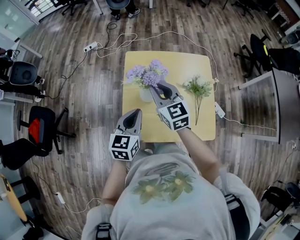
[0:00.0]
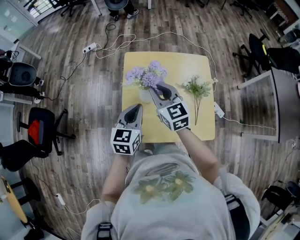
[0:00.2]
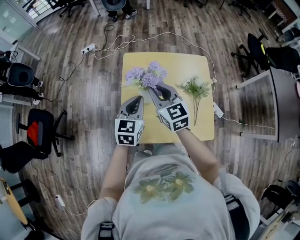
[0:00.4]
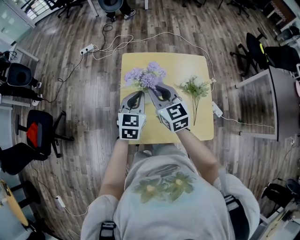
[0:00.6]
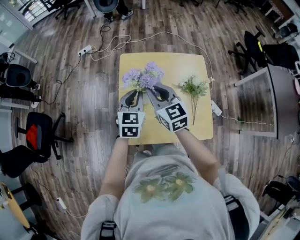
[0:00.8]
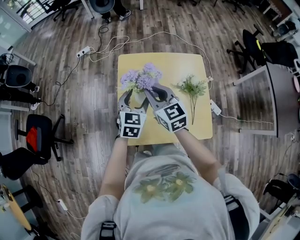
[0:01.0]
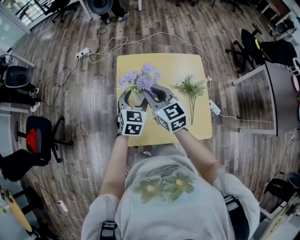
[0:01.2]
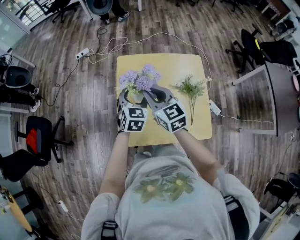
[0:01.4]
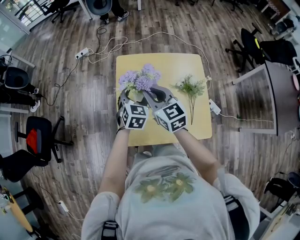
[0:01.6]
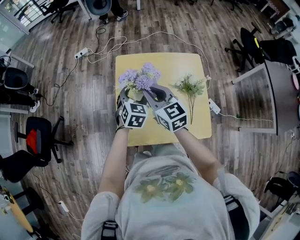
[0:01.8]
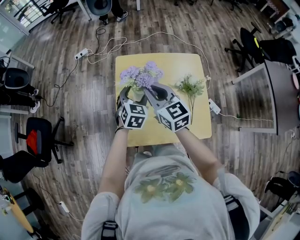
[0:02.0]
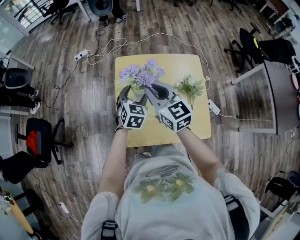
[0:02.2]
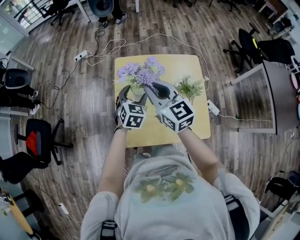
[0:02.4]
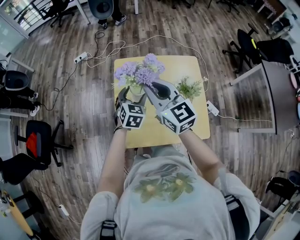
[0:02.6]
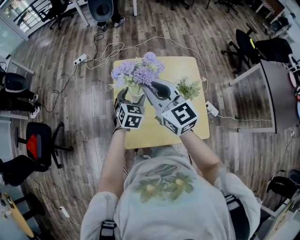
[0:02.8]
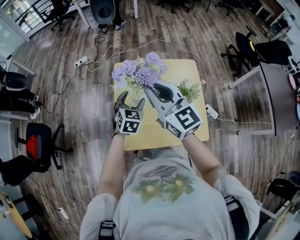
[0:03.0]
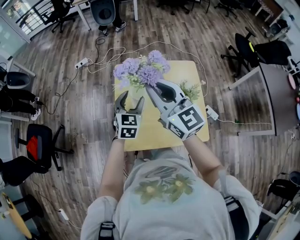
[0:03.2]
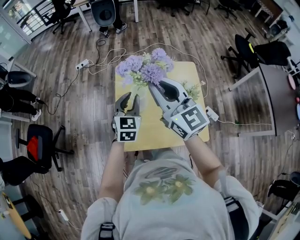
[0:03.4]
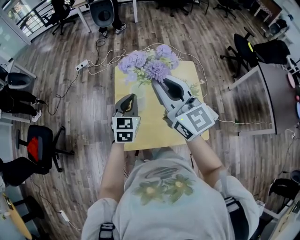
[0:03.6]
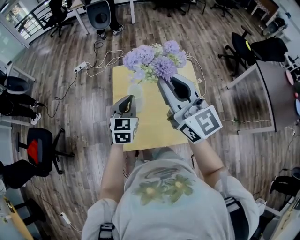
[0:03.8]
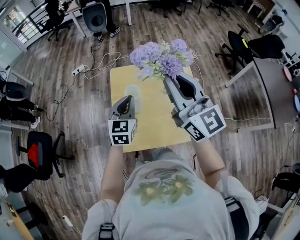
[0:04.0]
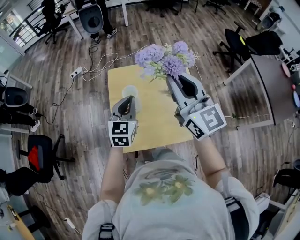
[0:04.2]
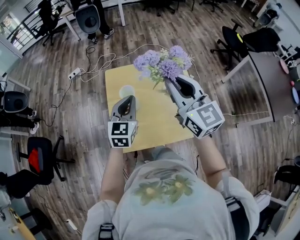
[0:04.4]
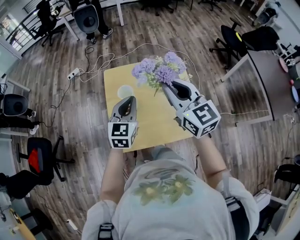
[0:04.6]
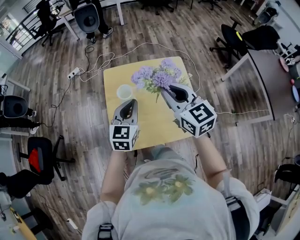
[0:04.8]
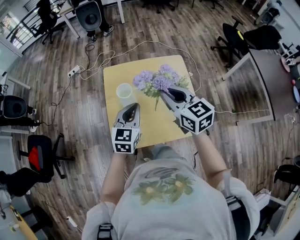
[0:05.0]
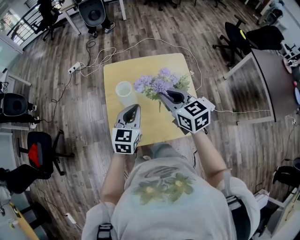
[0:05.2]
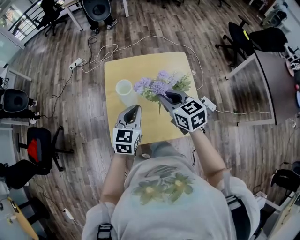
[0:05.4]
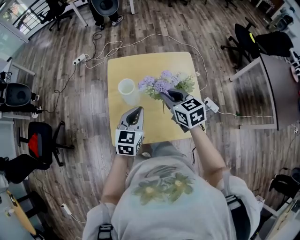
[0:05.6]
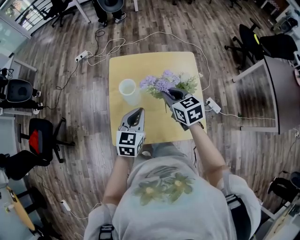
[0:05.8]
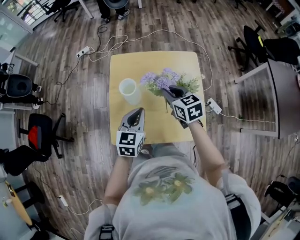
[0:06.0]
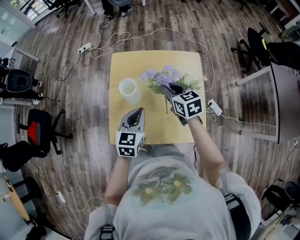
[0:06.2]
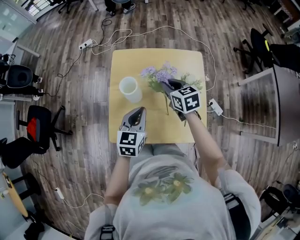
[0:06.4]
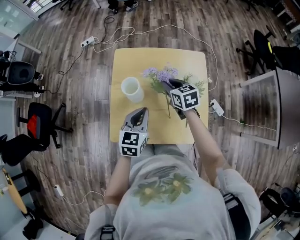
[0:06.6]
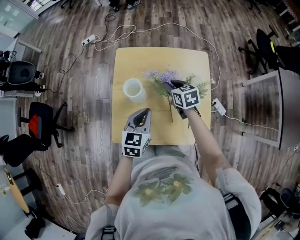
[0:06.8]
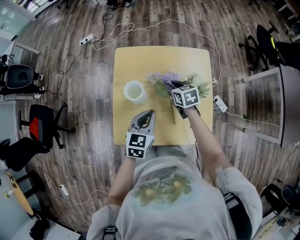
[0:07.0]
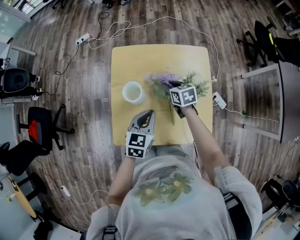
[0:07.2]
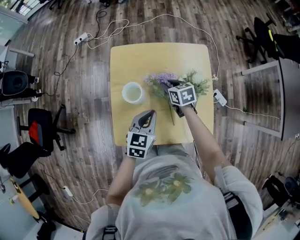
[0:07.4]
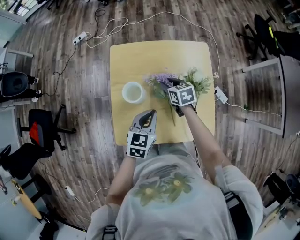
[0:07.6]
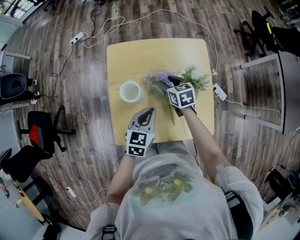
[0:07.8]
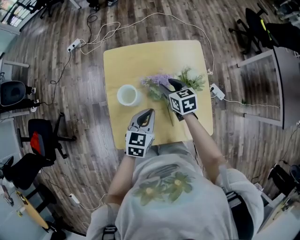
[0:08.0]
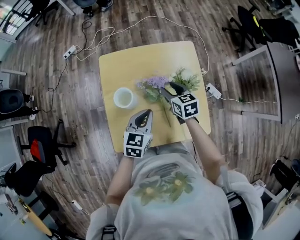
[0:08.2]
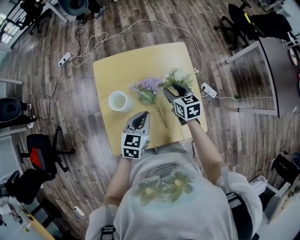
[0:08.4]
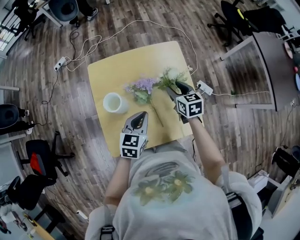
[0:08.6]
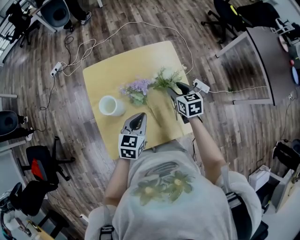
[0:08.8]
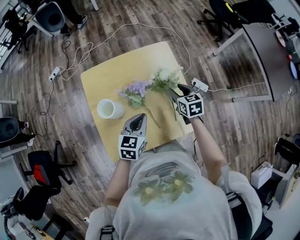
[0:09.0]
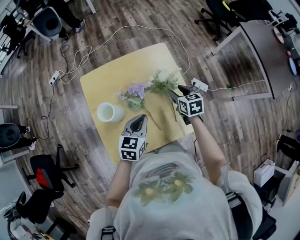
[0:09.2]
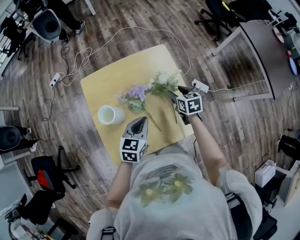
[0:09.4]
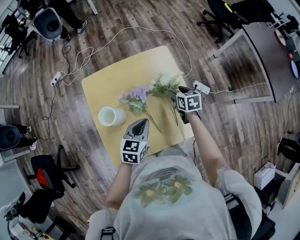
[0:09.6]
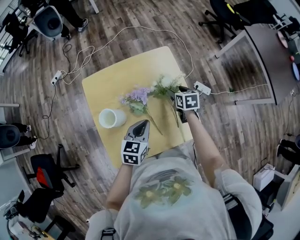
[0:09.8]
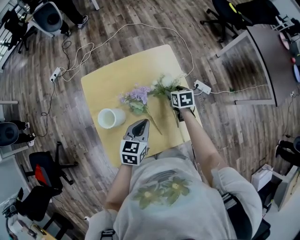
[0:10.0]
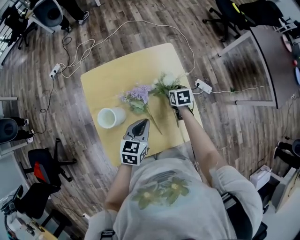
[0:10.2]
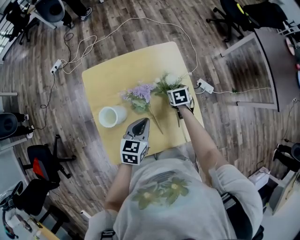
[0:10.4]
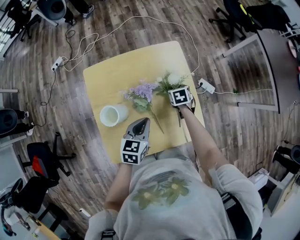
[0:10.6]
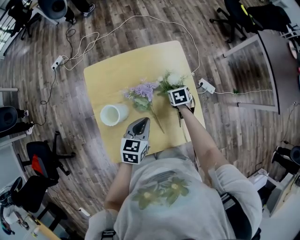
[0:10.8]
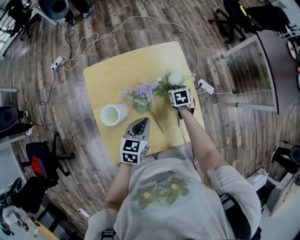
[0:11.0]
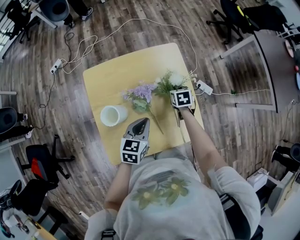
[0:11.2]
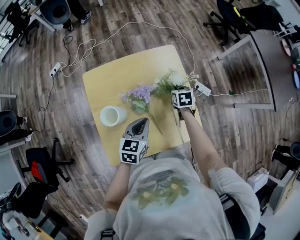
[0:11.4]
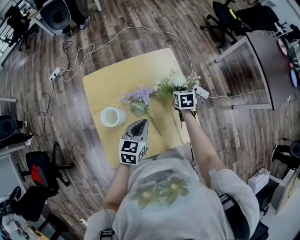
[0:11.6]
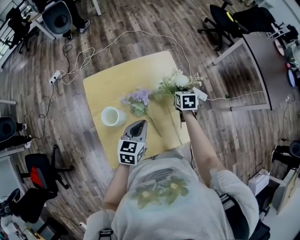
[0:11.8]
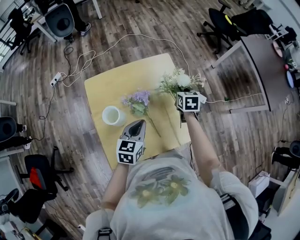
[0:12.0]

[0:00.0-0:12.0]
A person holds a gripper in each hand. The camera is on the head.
0:00.0 to 0:01.6: The left gripper is displaced forward, downward and to the right by about 15 cm, rotates about 30 degrees, and opens its fingers.
0:01.6 to 0:03.0: The right gripper moves upward, roughly 15 cm.
0:03.0 to 0:04.4: The right gripper moves to the right and backward, some 15 cm; the left gripper moves upward and backward, approximately 10 cm, changes its angle by about 20 degrees, and closes.
0:04.4 to 0:06.0: The left gripper moves downward, about 10 cm, while the right gripper goes some 25 cm downward, and tips its fingers downward by roughly 30 degrees.
0:06.0 to 0:07.6: The left gripper heads downward and forward, covering roughly 10 cm, while the right gripper shifts some 20 cm downward and forward.
0:07.6 to 0:09.0: The right gripper heads to the right, covering roughly 20 cm, and swivels roughly 20 degrees. Meanwhile the left gripper shifts roughly 5 cm to the right.
0:09.0 to 0:10.4: The left gripper ends up roughly 5 cm from where it was, while the right gripper moves downward and forward, about 15 cm, and changes its angle by about 20 degrees.
0:10.4 to 0:12.0: The right gripper heads upward, covering about 15 cm, swivels roughly 20 degrees, and closes; the left gripper is displaced upward by roughly 5 cm.

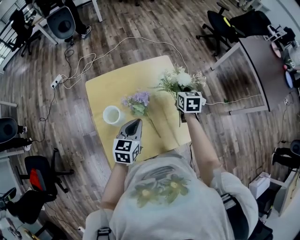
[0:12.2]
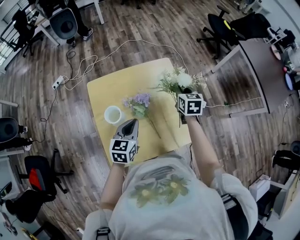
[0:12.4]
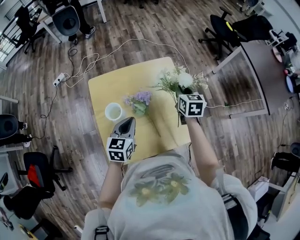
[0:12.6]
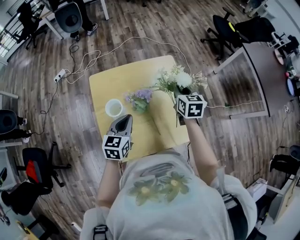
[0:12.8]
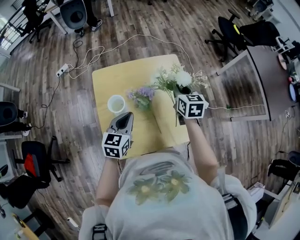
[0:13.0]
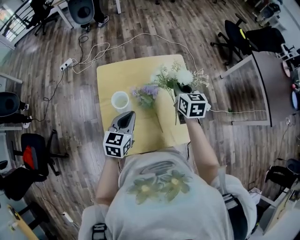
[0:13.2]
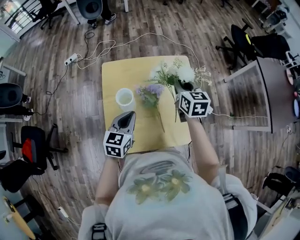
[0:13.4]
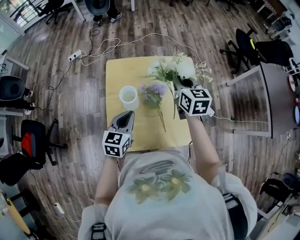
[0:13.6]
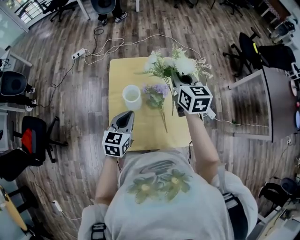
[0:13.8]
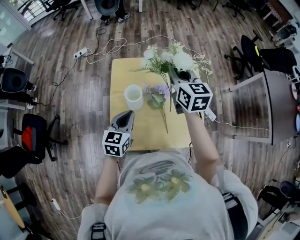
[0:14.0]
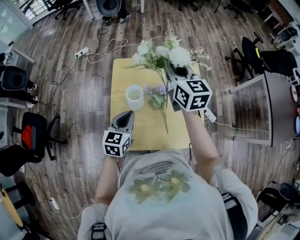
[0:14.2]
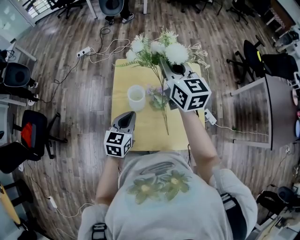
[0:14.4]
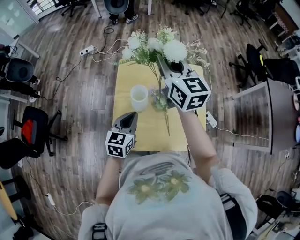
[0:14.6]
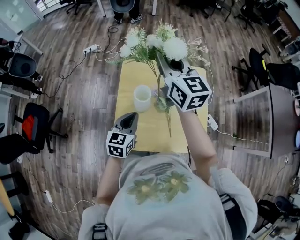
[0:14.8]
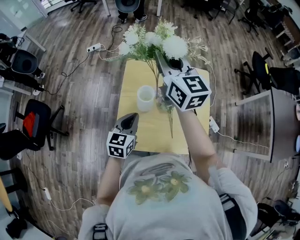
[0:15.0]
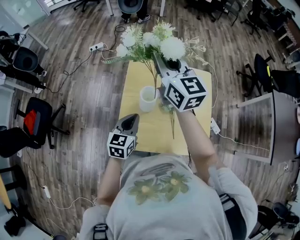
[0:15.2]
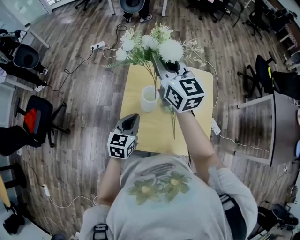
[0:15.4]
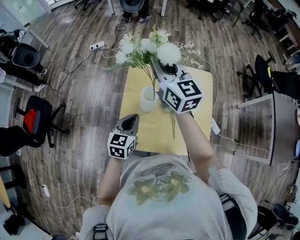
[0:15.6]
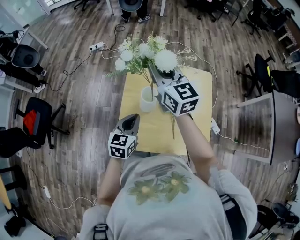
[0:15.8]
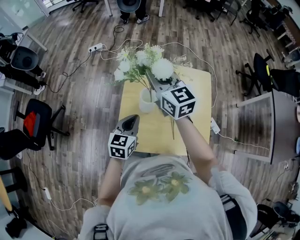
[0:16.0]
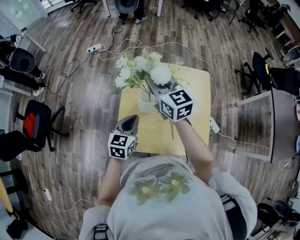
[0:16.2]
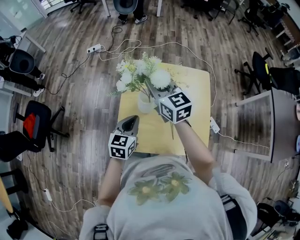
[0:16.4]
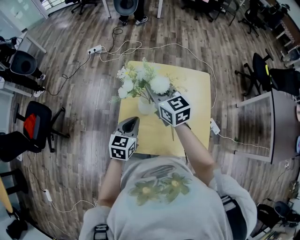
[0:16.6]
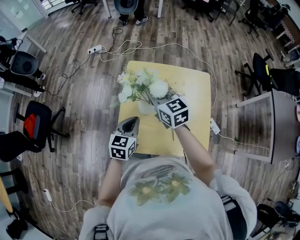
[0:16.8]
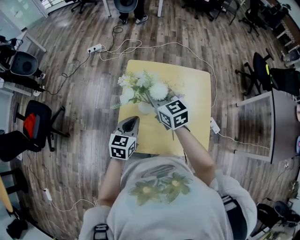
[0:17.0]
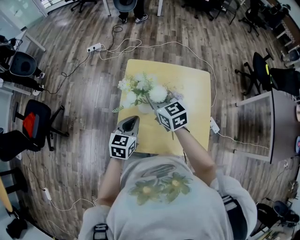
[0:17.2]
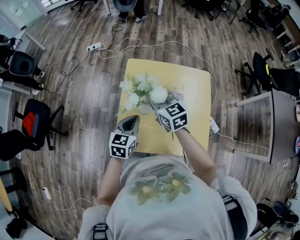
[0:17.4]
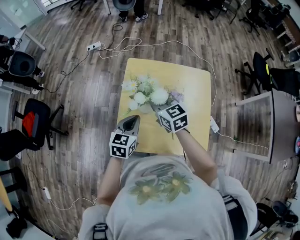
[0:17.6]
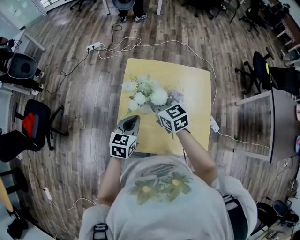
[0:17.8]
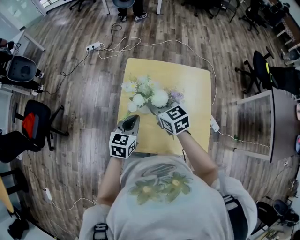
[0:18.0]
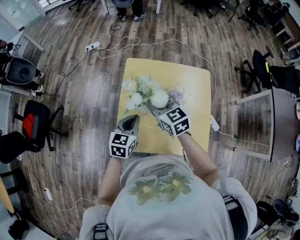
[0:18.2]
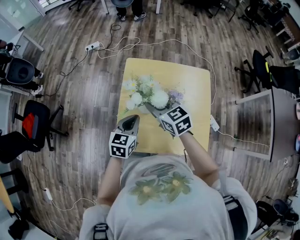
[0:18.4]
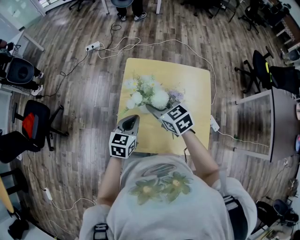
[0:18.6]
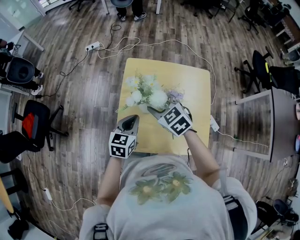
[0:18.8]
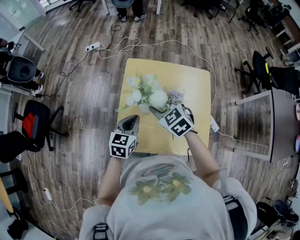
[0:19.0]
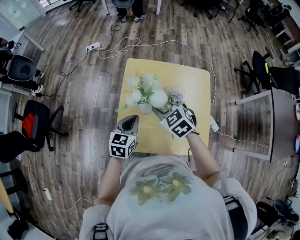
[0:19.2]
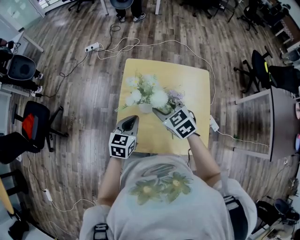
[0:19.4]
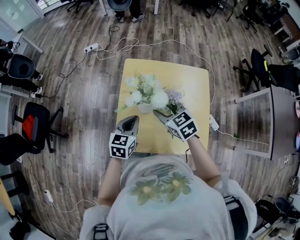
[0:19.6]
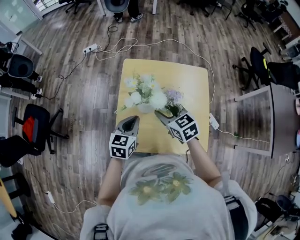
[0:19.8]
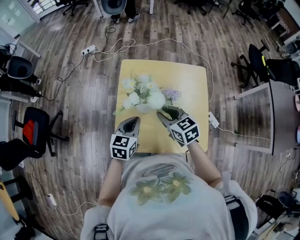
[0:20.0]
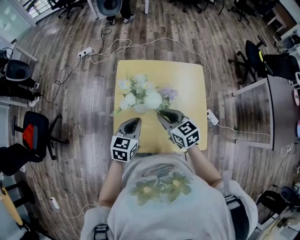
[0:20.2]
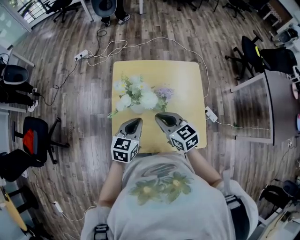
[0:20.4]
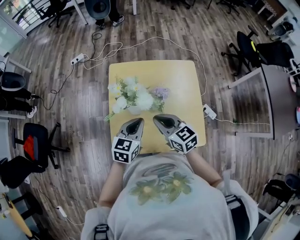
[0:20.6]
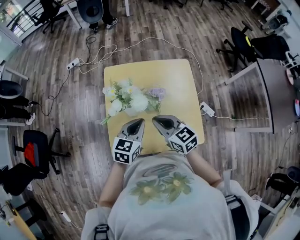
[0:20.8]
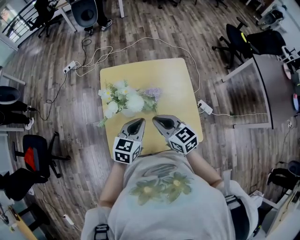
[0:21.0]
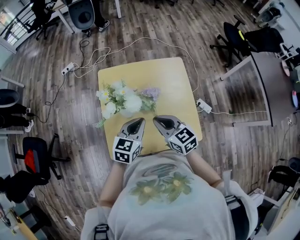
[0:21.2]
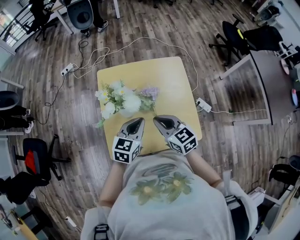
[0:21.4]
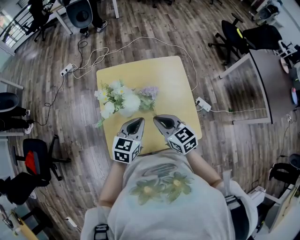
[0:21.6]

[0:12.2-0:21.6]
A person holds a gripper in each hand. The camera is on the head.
0:12.2 to 0:13.8: The right gripper heads to the left and upward, covering some 25 cm, and swivels about 30 degrees. Meanwhile the left gripper is displaced to the left and backward by about 10 cm.
0:13.8 to 0:15.4: The right gripper goes about 20 cm to the left and upward, and turns by approximately 30 degrees; the left gripper moves to the left, approximately 5 cm.
0:15.4 to 0:17.0: The right gripper goes about 15 cm downward, and changes its angle by about 20 degrees.
0:17.0 to 0:18.4: The right gripper opens its fingers.
0:18.4 to 0:20.0: The right gripper shifts about 5 cm backward.
0:20.0 to 0:21.6: The left gripper shifts some 10 cm to the right, while the right gripper is displaced to the right and backward by some 10 cm, and closes.

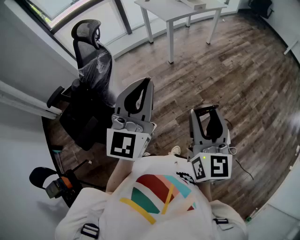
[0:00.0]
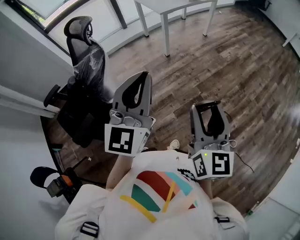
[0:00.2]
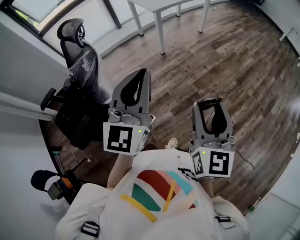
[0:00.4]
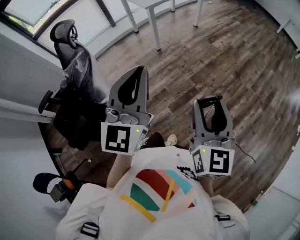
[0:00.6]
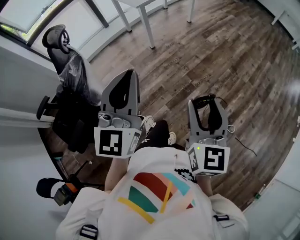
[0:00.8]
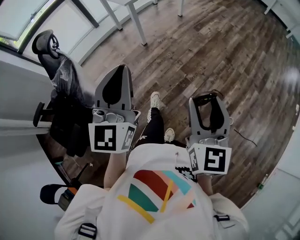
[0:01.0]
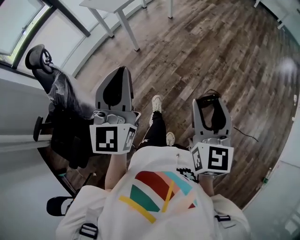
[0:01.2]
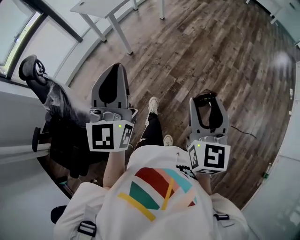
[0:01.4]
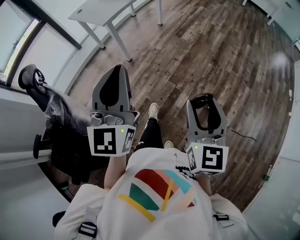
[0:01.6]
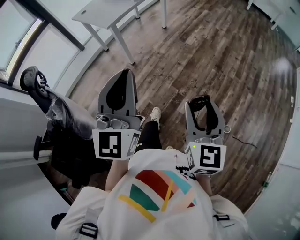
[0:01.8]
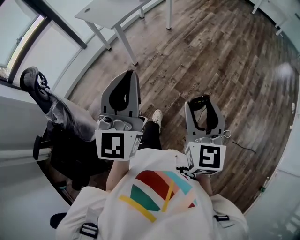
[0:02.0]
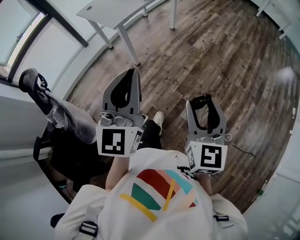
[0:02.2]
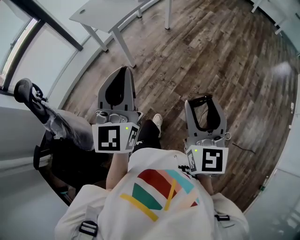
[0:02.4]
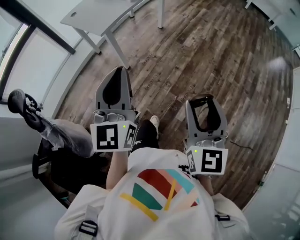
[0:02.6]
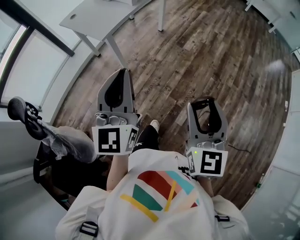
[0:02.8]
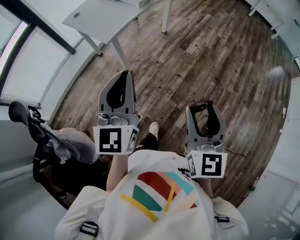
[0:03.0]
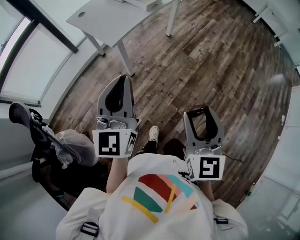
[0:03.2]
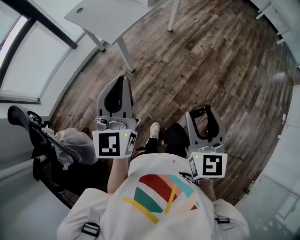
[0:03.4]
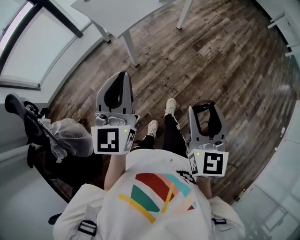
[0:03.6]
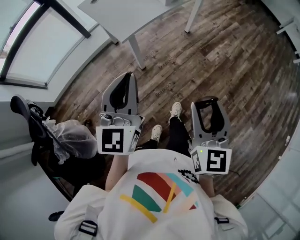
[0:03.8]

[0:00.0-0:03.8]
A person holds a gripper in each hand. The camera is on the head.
0:00.0 to 0:01.2: The right gripper goes roughly 15 cm to the right and downward, and swivels roughly 20 degrees, while the left gripper moves forward and to the right, some 10 cm.
0:01.2 to 0:02.6: Both grippers travel together forward, about 25 cm.
0:02.6 to 0:03.8: Both grippers move forward, roughly 20 cm.
